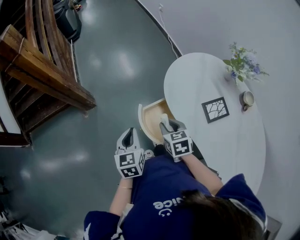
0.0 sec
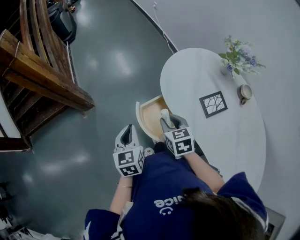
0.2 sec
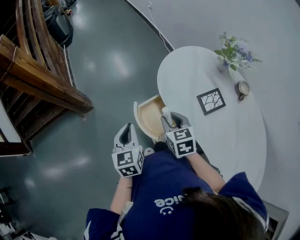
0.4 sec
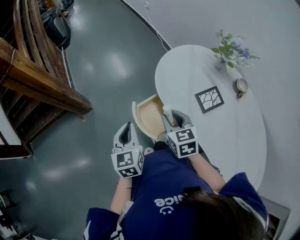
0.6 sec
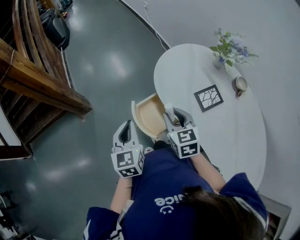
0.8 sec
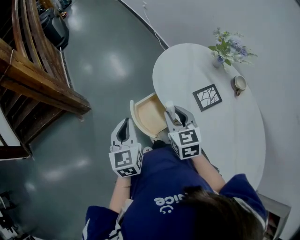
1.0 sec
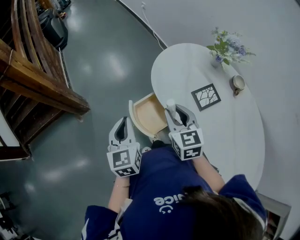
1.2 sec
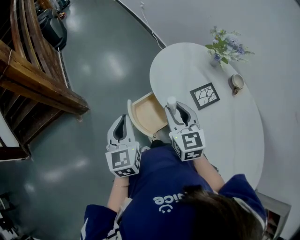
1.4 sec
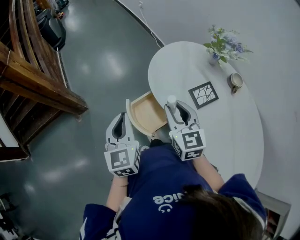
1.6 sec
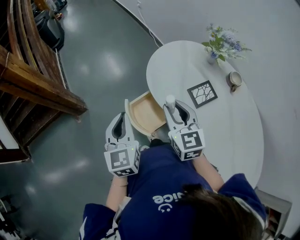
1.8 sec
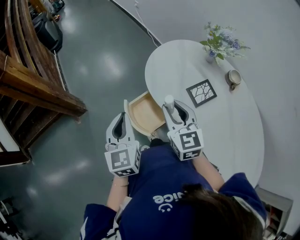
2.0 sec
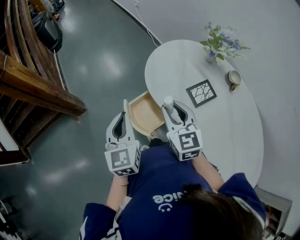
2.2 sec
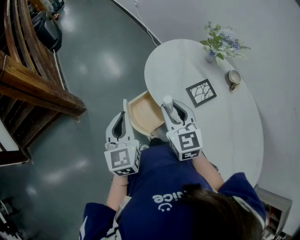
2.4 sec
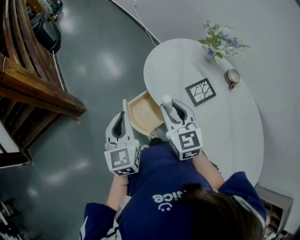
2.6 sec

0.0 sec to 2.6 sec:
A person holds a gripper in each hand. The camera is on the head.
0.0 sec to 1.2 sec: The right gripper travels upward and to the right by approximately 15 cm, and swivels roughly 20 degrees. The left gripper travels upward by about 10 cm.
1.2 sec to 2.6 sec: There are only small adjustments of the grippers.

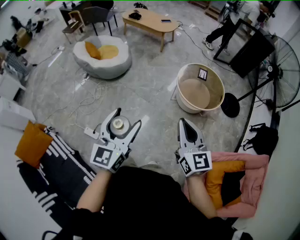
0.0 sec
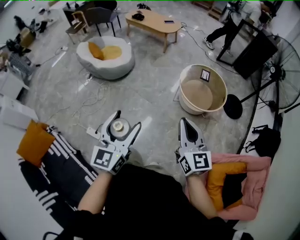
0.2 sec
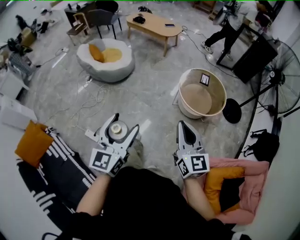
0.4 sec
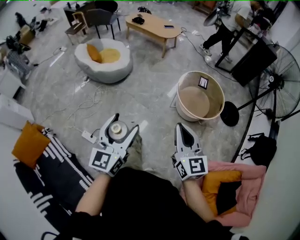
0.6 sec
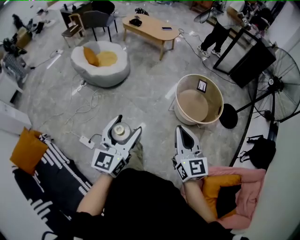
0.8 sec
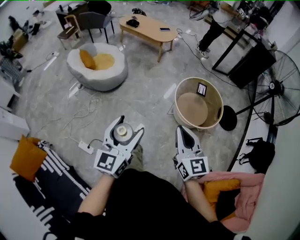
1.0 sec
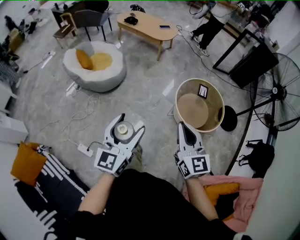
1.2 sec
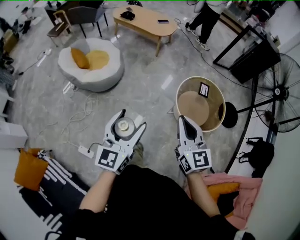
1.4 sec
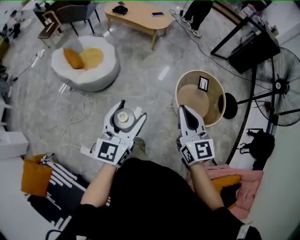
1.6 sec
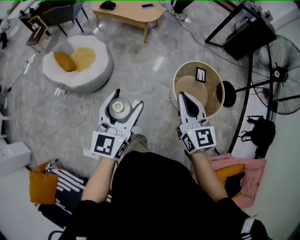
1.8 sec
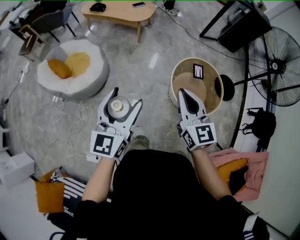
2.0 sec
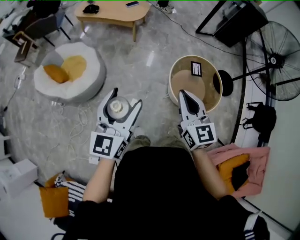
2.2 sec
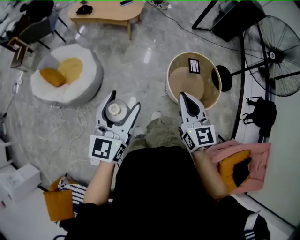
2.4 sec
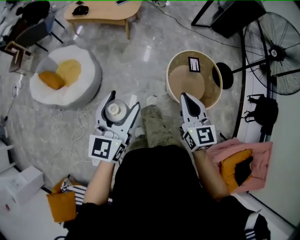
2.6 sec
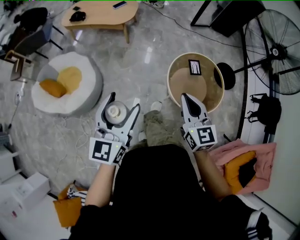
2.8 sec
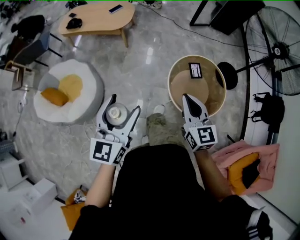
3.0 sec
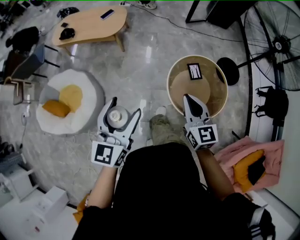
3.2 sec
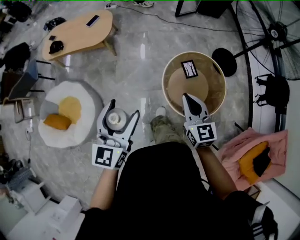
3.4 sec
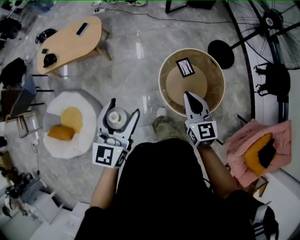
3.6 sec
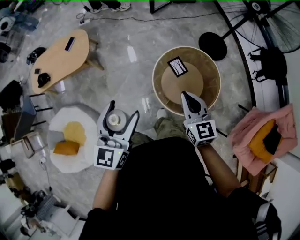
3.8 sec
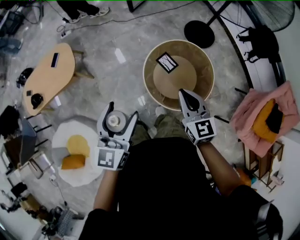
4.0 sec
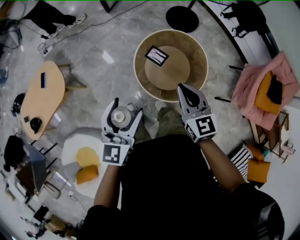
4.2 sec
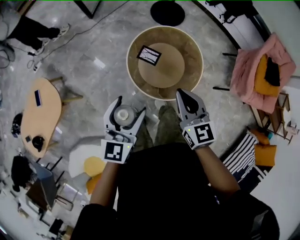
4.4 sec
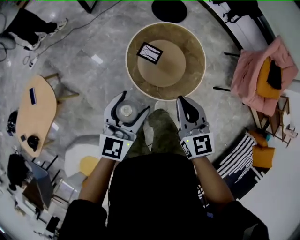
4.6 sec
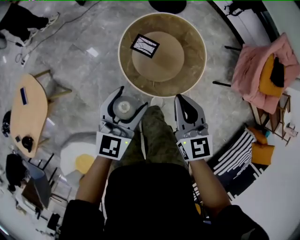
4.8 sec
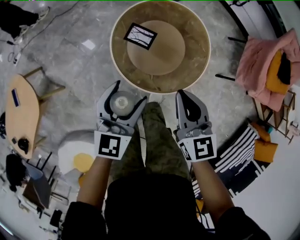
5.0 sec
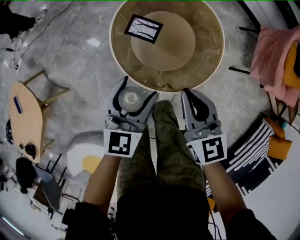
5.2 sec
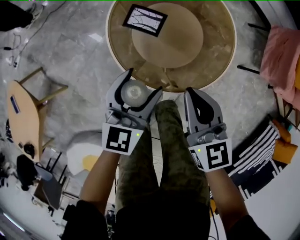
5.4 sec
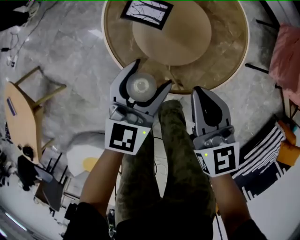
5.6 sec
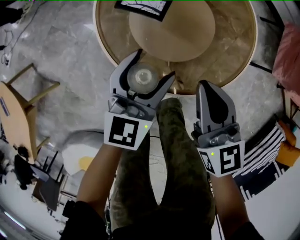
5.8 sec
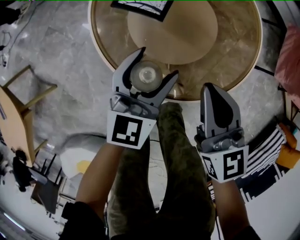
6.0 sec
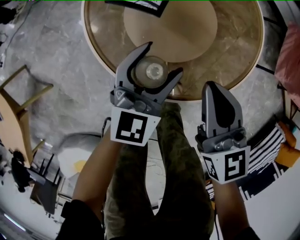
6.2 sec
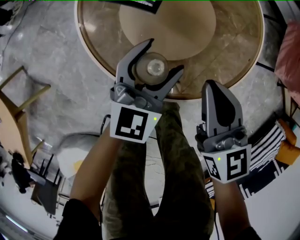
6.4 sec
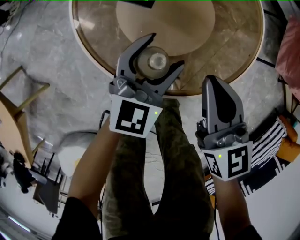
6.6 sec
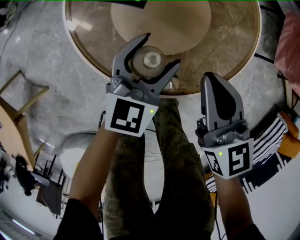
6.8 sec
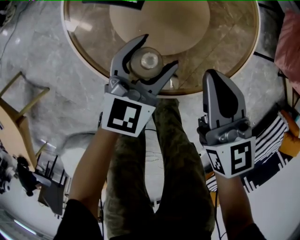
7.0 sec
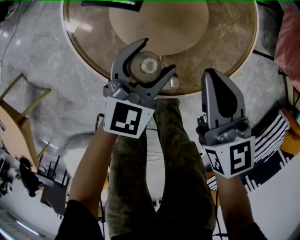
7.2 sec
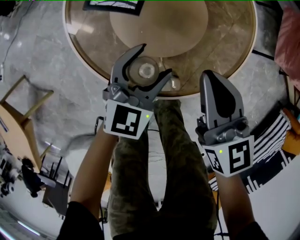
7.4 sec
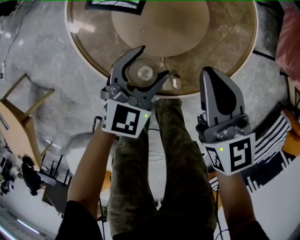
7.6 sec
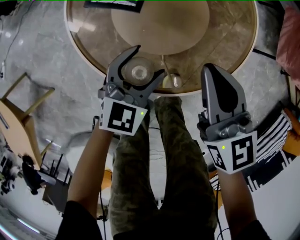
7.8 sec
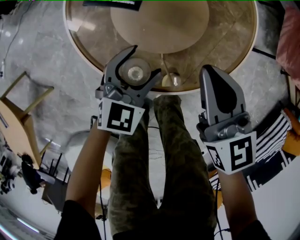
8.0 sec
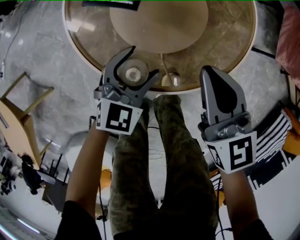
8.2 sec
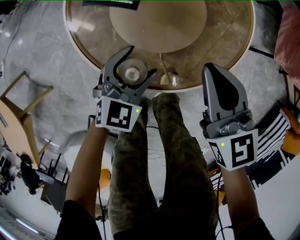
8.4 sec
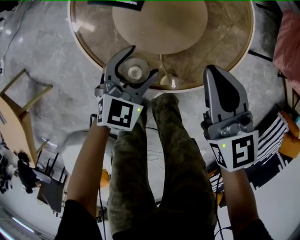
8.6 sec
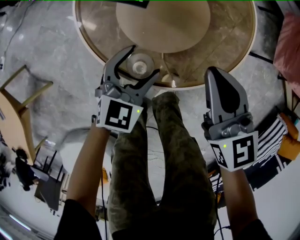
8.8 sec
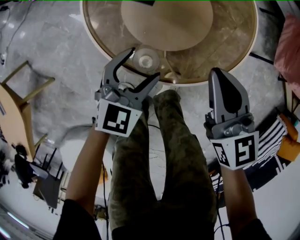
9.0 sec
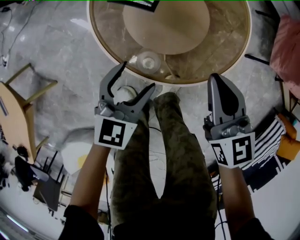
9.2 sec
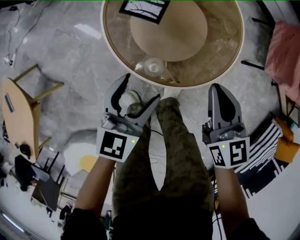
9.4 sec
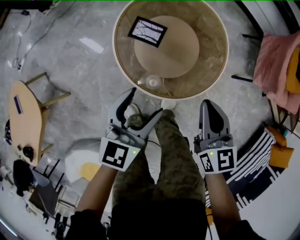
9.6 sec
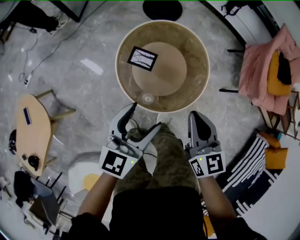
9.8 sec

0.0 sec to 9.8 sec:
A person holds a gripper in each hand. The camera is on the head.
0.0 sec to 1.4 sec: The two grippers go roughly 35 cm forward.
1.4 sec to 2.8 sec: The grippers both shift forward by approximately 30 cm. The right gripper changes its angle by some 20 degrees.
2.8 sec to 4.2 sec: The left gripper changes place by roughly 50 cm, and rotates some 50 degrees. The right gripper changes place by about 35 cm, and changes its angle by about 40 degrees.
4.2 sec to 5.6 sec: Both grippers travel together downward, about 40 cm. The left gripper turns by some 30 degrees.
5.6 sec to 7.0 sec: The two grippers go about 15 cm downward and to the right.
7.0 sec to 8.4 sec: The left gripper changes place by about 5 cm.
8.4 sec to 9.8 sec: The grippers both shift upward by approximately 35 cm. The left gripper changes its angle by about 30 degrees.

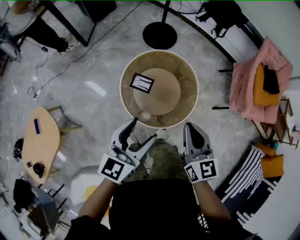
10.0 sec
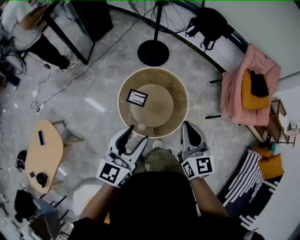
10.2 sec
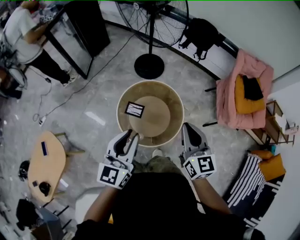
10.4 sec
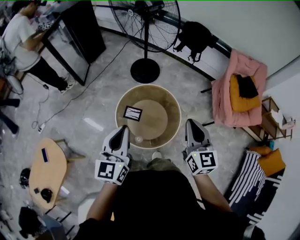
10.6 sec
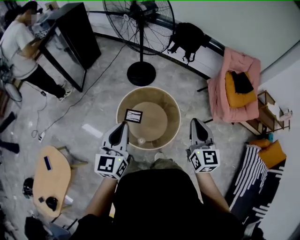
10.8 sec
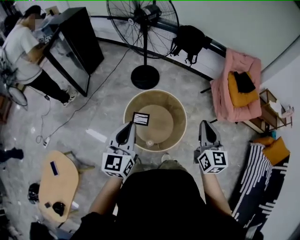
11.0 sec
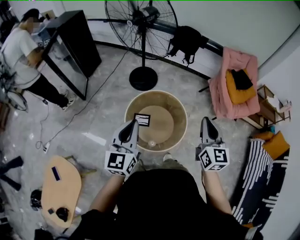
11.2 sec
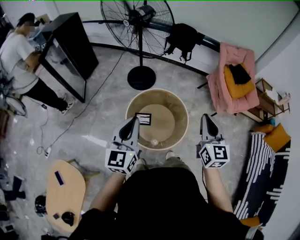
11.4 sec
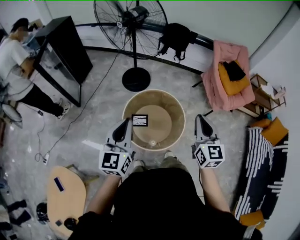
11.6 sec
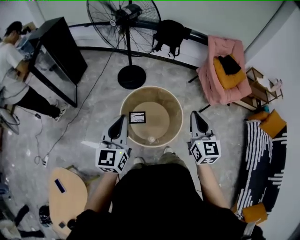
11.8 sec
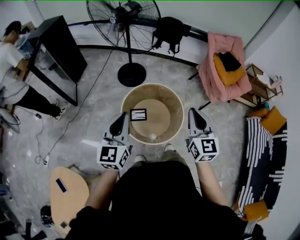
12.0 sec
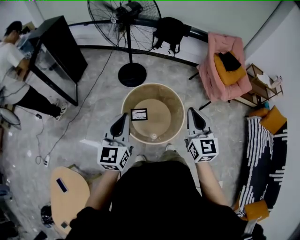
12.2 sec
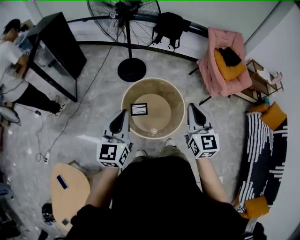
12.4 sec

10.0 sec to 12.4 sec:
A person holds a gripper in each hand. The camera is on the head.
10.0 sec to 11.2 sec: The right gripper travels upward by some 20 cm, and turns by roughly 30 degrees, while the left gripper goes roughly 20 cm upward and to the left, and closes its fingers.
11.2 sec to 12.4 sec: The two grippers go approximately 5 cm to the left.

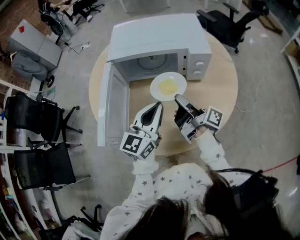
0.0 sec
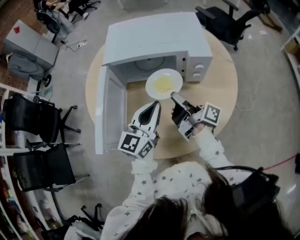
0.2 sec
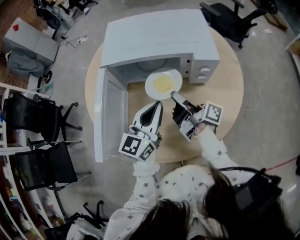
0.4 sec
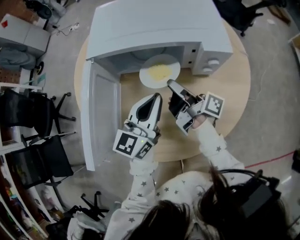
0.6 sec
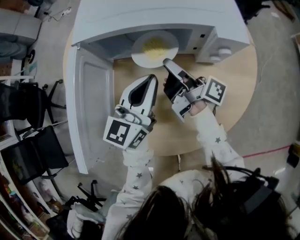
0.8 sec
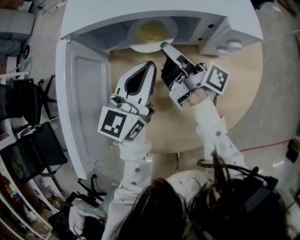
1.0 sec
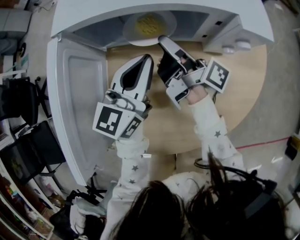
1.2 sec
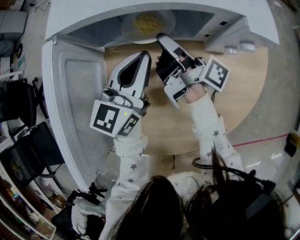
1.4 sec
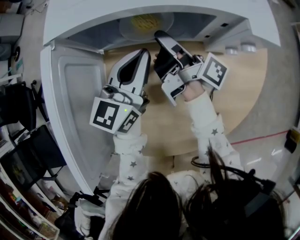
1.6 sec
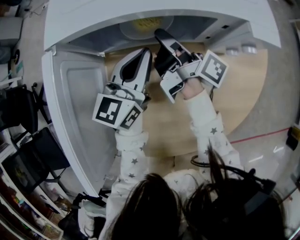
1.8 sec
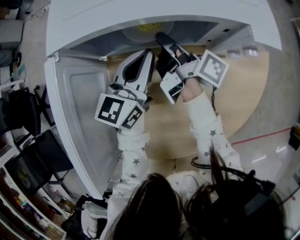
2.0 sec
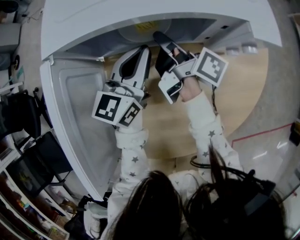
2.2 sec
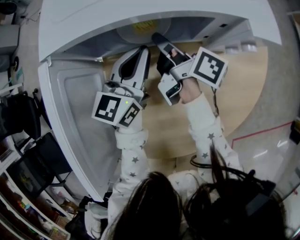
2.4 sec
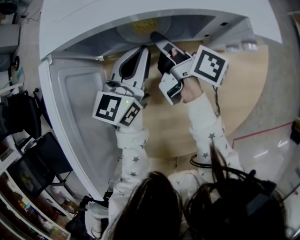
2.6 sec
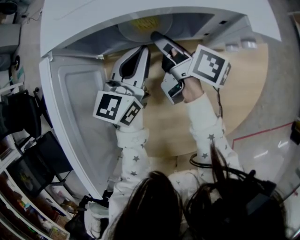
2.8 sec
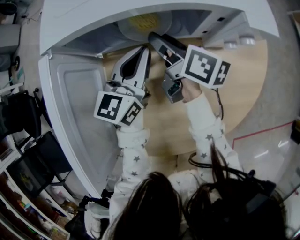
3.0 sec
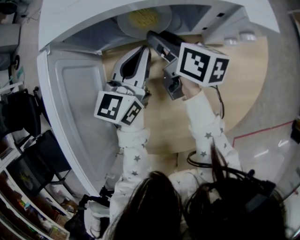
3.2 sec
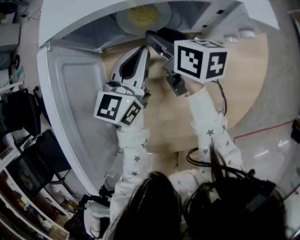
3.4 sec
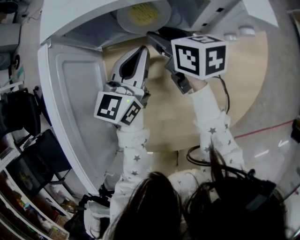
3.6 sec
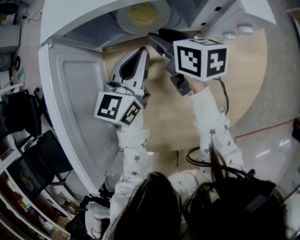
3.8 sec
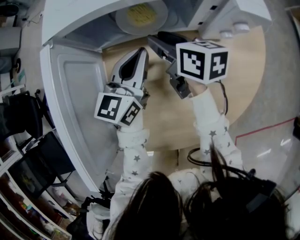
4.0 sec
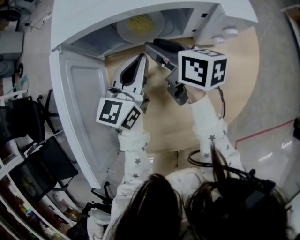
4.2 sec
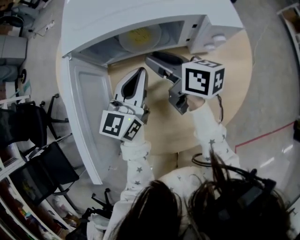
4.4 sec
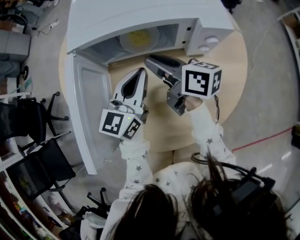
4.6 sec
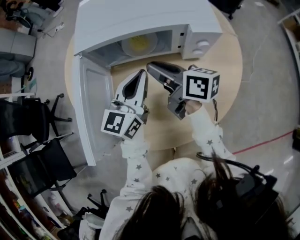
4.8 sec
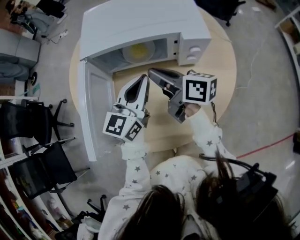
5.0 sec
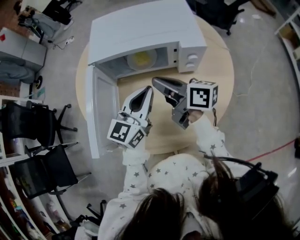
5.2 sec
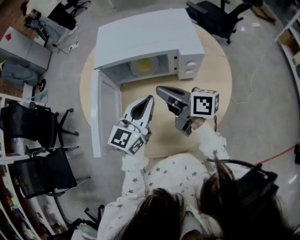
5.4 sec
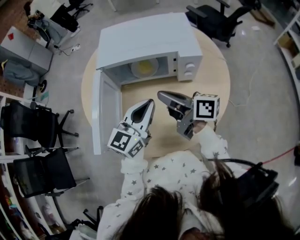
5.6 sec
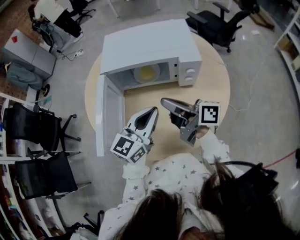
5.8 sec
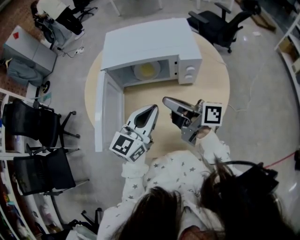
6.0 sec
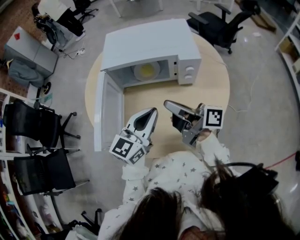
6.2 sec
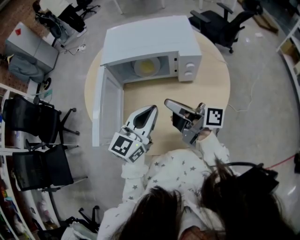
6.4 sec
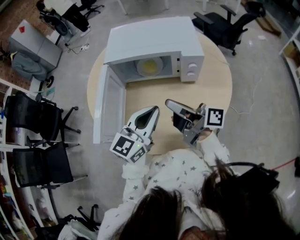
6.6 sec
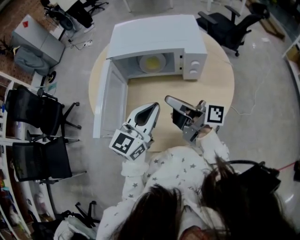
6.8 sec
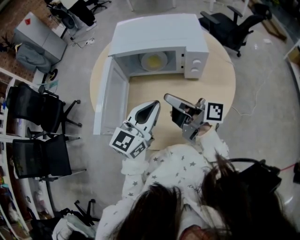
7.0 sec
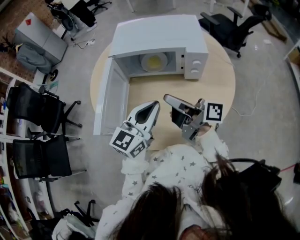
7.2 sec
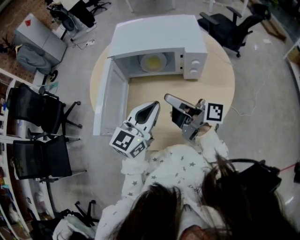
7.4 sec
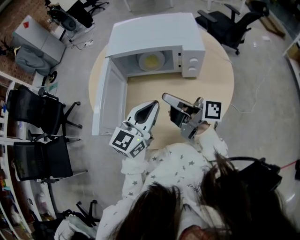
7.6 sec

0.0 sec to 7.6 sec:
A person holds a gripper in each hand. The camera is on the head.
0.0 sec to 1.6 sec: The right gripper is displaced forward and to the left by approximately 15 cm. The left gripper is displaced forward, downward and to the left by roughly 15 cm.
1.6 sec to 3.0 sec: The right gripper rotates about 40 degrees, and opens up.
3.0 sec to 4.6 sec: The two grippers go about 10 cm upward.
4.6 sec to 6.0 sec: The right gripper shifts some 15 cm backward, upward and to the right, and turns by roughly 20 degrees. Meanwhile the left gripper is displaced backward and upward by some 15 cm.
6.0 sec to 7.6 sec: There are only small adjustments of the grippers.

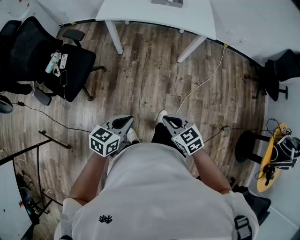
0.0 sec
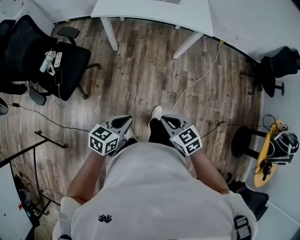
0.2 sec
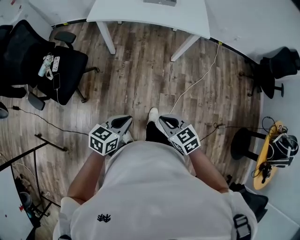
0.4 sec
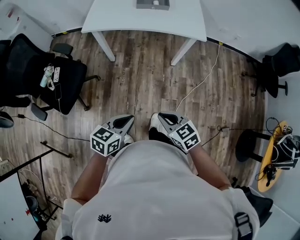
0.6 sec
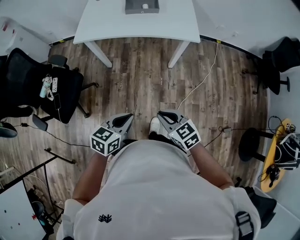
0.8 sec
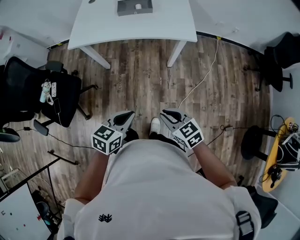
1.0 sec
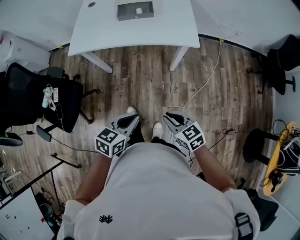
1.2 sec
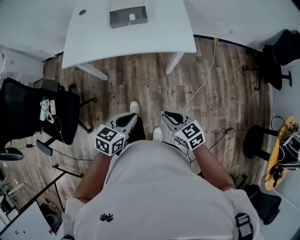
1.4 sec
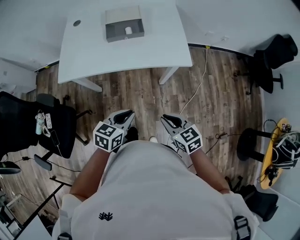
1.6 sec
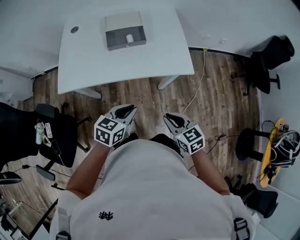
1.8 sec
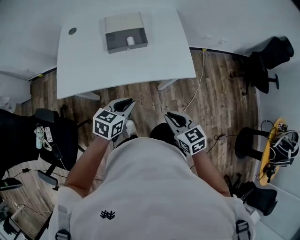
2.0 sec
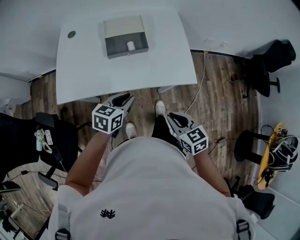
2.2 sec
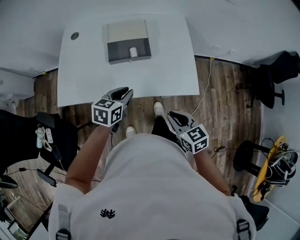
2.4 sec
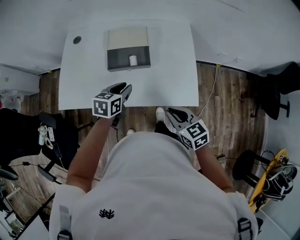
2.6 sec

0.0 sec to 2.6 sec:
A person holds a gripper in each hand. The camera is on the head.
0.0 sec to 1.2 sec: The two grippers go approximately 20 cm forward and to the right.
1.2 sec to 2.6 sec: Both grippers travel together forward, about 40 cm. The left gripper opens its fingers.
